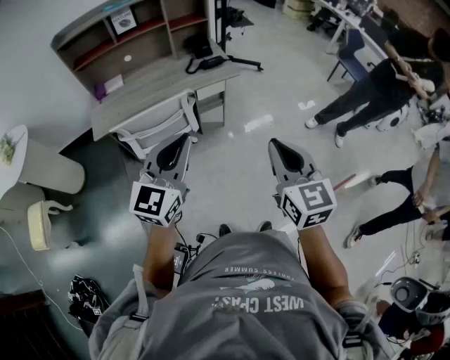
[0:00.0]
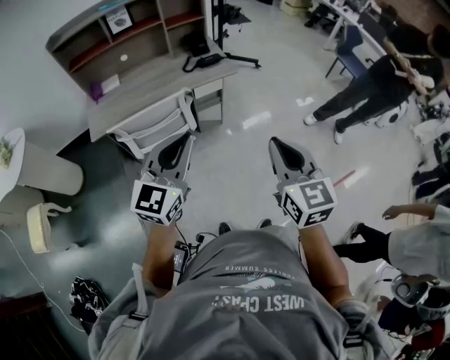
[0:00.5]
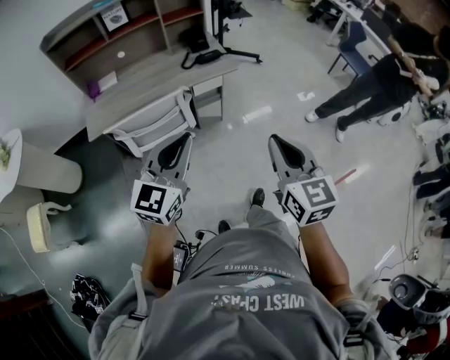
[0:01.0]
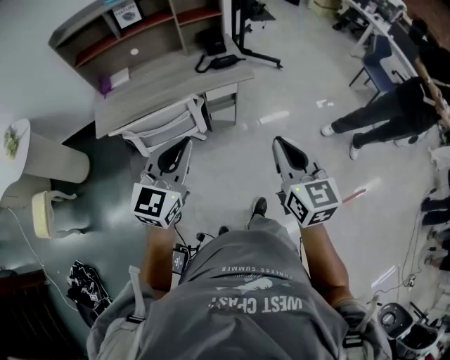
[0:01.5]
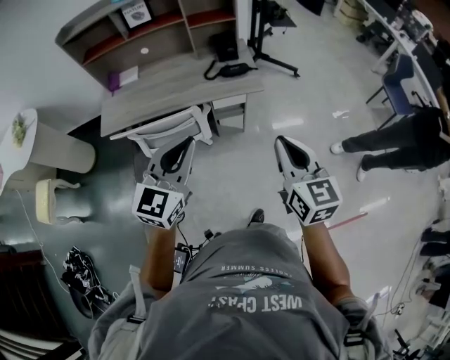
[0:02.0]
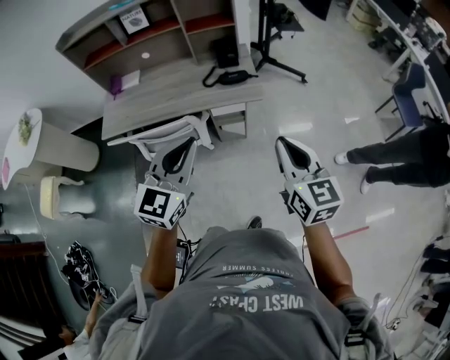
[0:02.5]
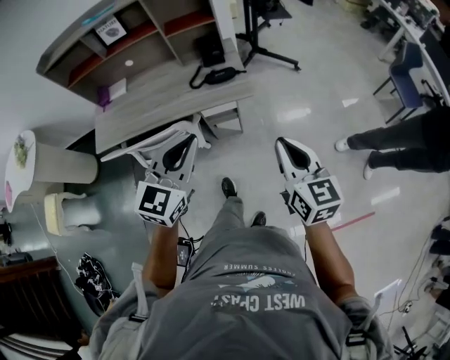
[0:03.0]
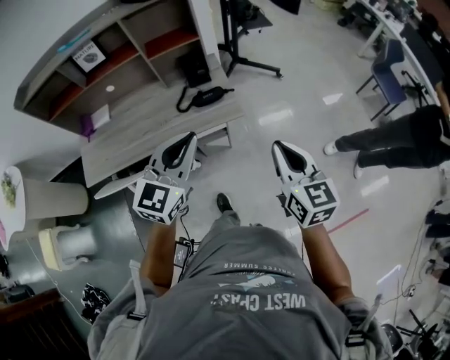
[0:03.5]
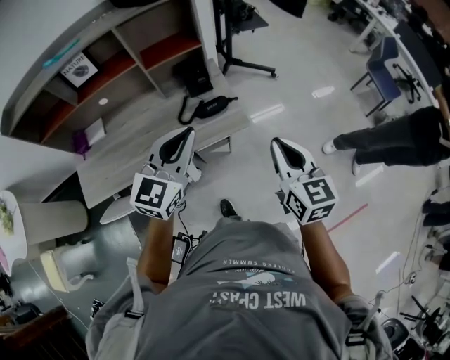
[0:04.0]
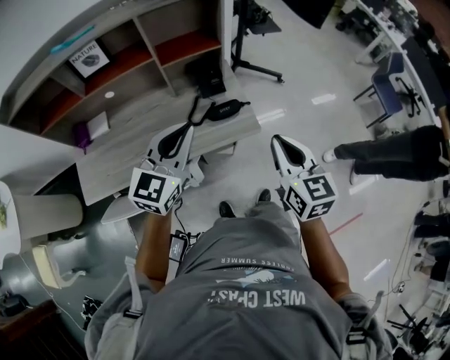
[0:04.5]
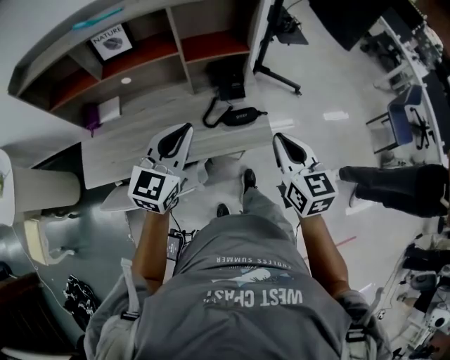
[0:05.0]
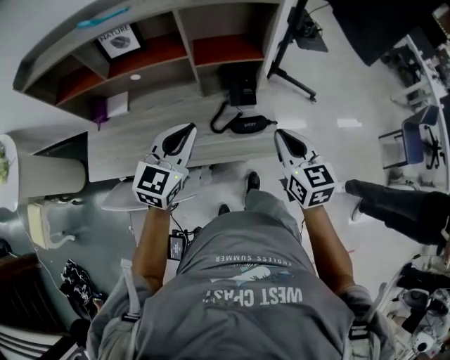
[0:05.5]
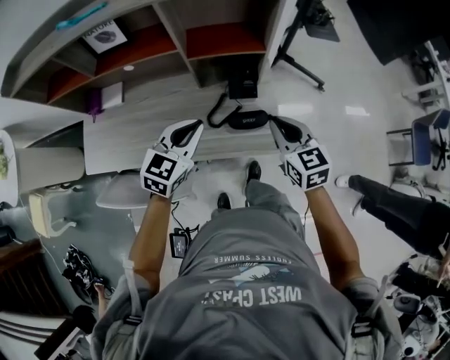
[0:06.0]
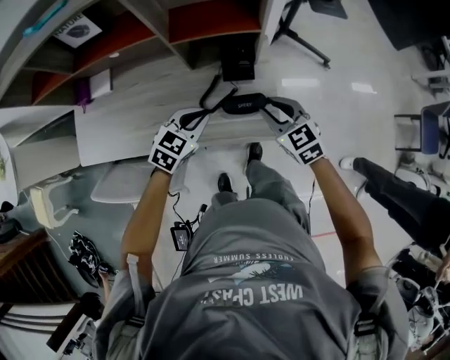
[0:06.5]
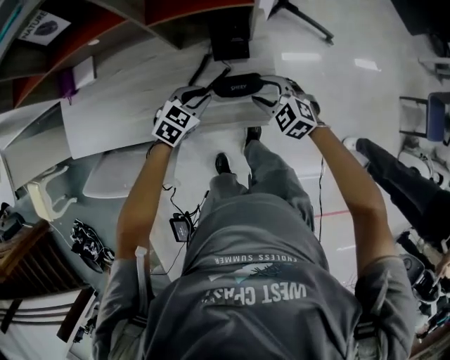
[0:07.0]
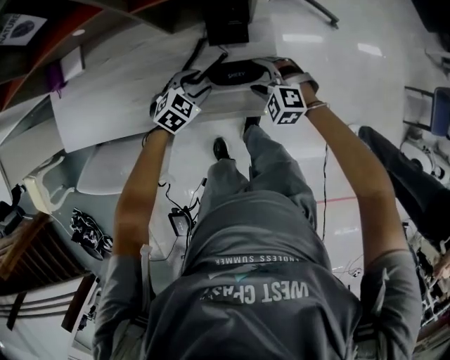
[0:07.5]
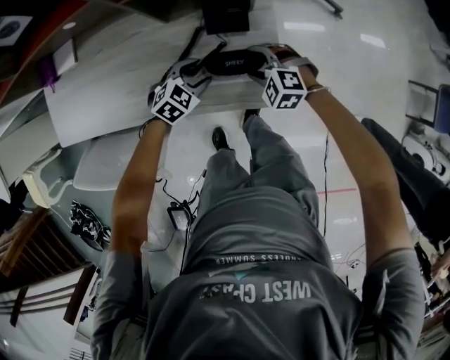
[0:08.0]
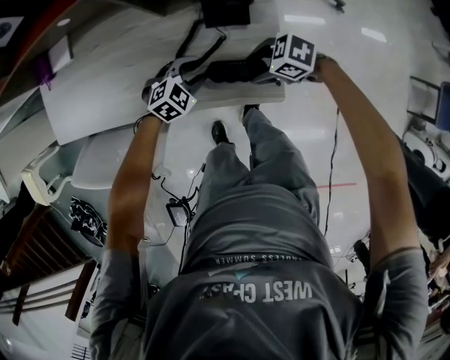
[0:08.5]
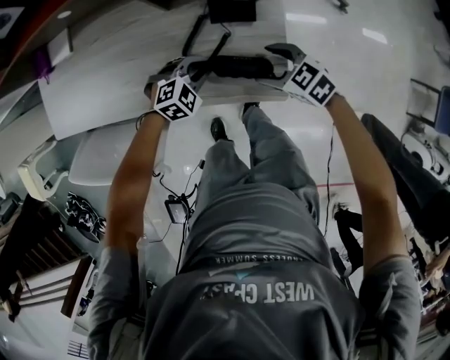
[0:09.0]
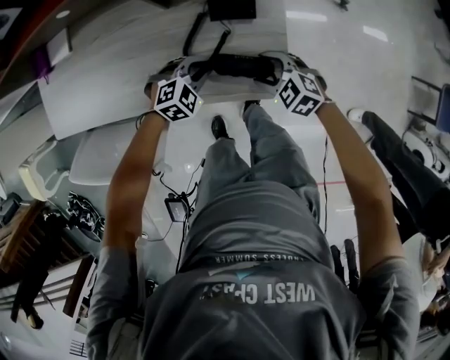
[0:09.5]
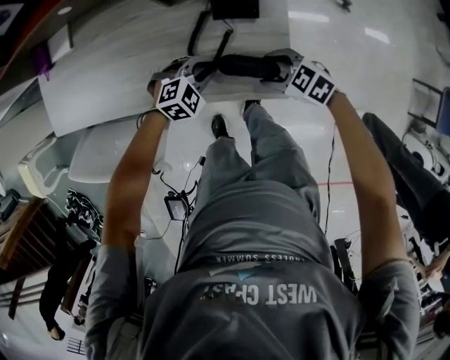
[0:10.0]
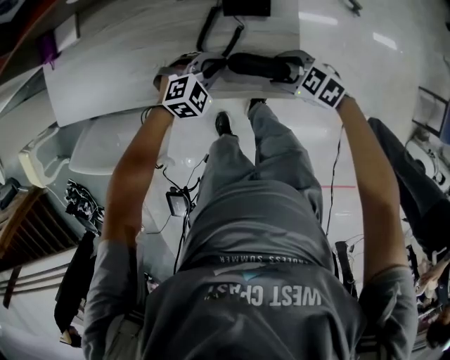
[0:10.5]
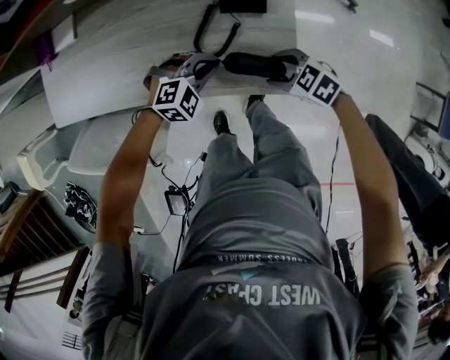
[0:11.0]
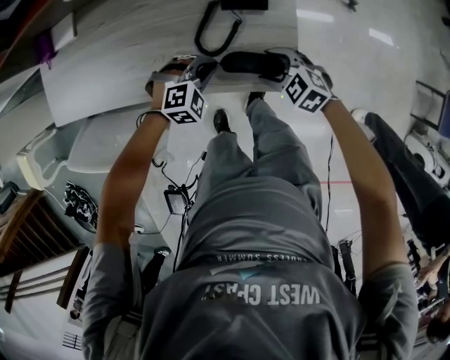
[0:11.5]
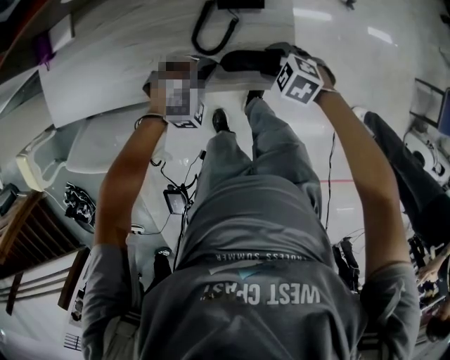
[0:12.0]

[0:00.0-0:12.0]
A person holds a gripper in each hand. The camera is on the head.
0:00.0 to 0:02.0: The grippers both shift forward by about 20 cm.
0:02.0 to 0:04.0: Both grippers travel together forward, about 30 cm.
0:04.0 to 0:06.0: The right gripper is displaced forward and downward by roughly 25 cm, and turns by about 30 degrees. Meanwhile the left gripper heads forward, downward and to the left, covering roughly 20 cm, and turns by about 20 degrees.
0:06.0 to 0:08.0: The two grippers go roughly 30 cm downward. The right gripper rolls counterclockwise, seen from behind, by about 50 degrees, and opens; the left gripper rotates some 30 degrees, and opens its fingers.
0:08.0 to 0:10.0: The left gripper closes. The right gripper ends up roughly 5 cm from where it was, and turns by roughly 30 degrees.
0:10.0 to 0:12.0: The left gripper changes its angle by some 20 degrees.

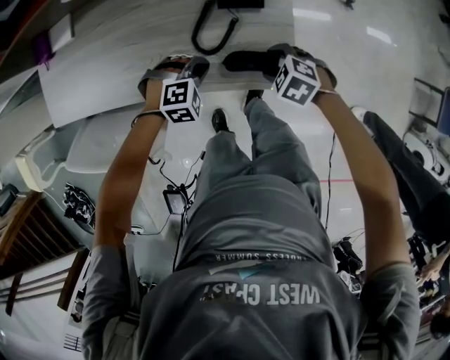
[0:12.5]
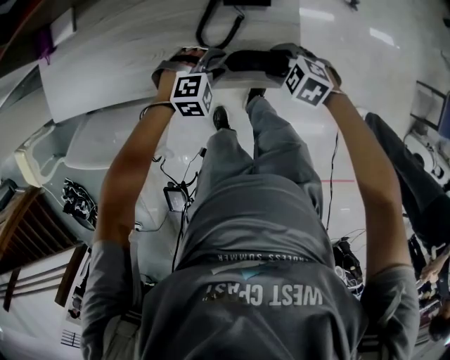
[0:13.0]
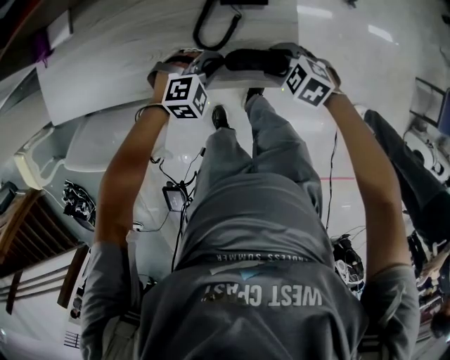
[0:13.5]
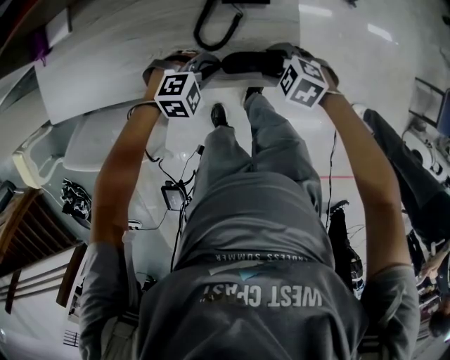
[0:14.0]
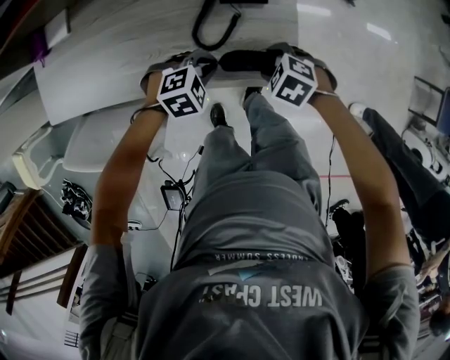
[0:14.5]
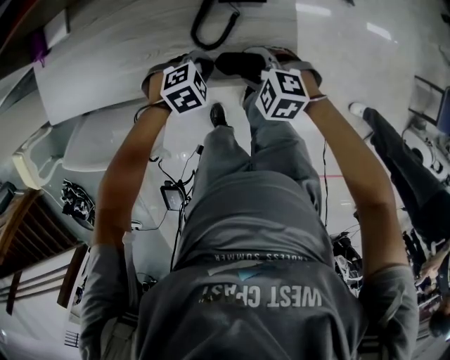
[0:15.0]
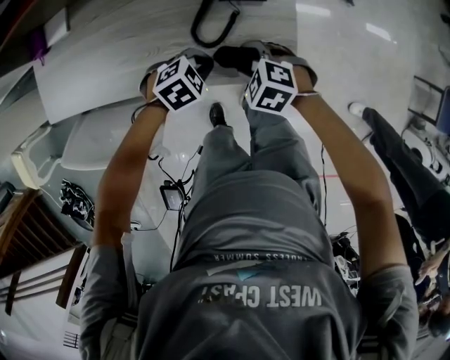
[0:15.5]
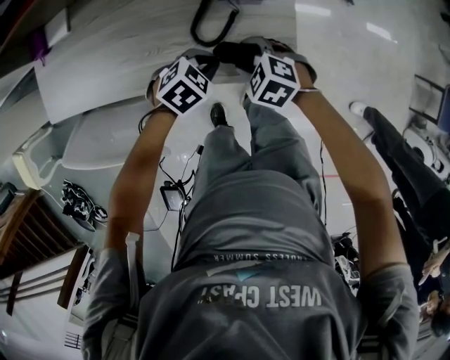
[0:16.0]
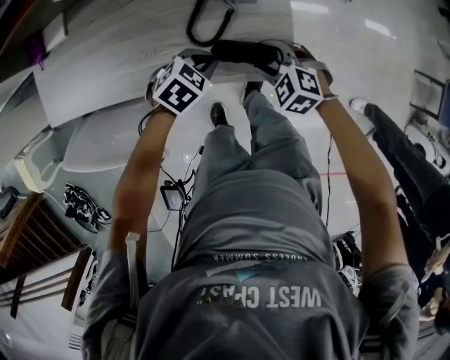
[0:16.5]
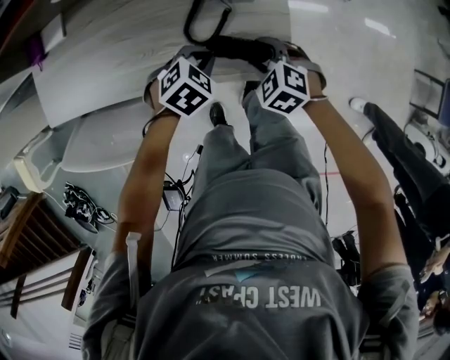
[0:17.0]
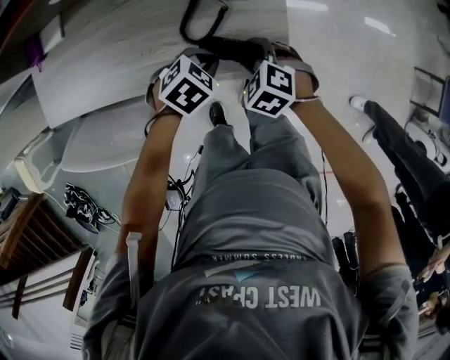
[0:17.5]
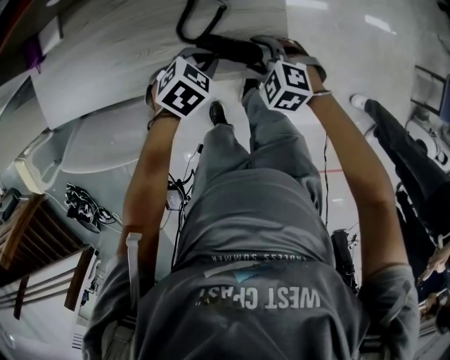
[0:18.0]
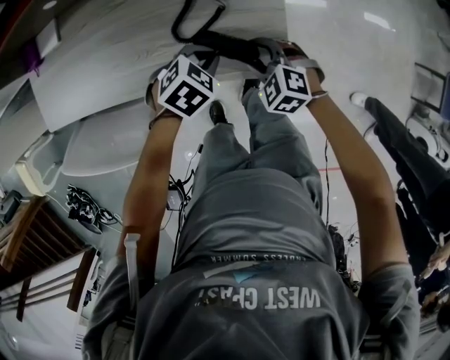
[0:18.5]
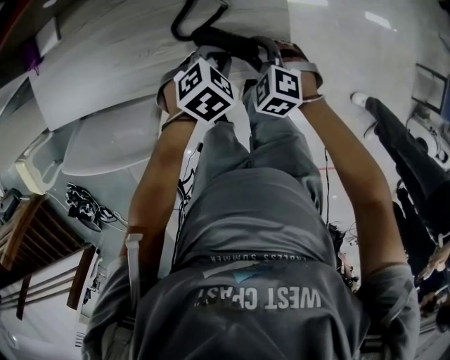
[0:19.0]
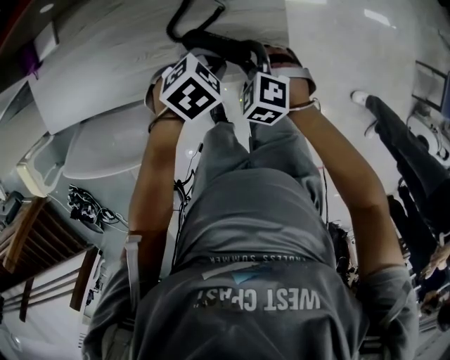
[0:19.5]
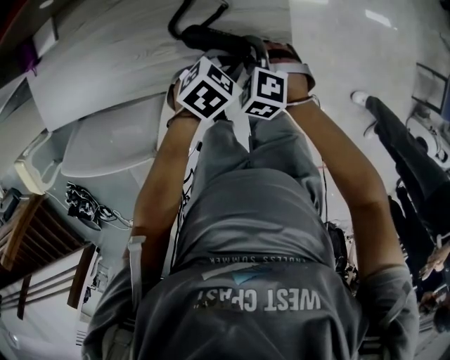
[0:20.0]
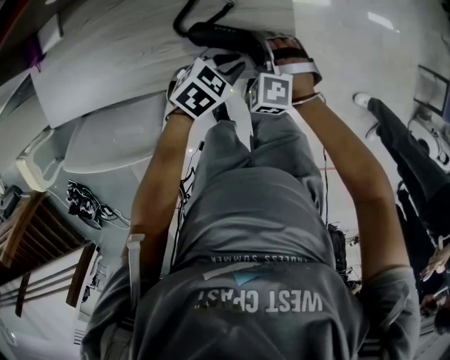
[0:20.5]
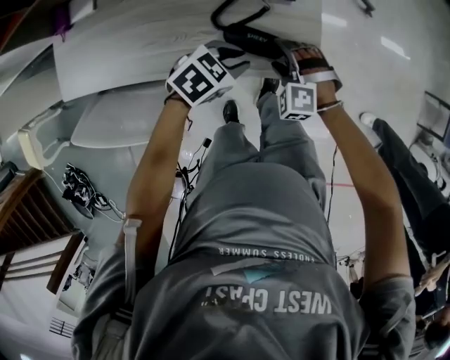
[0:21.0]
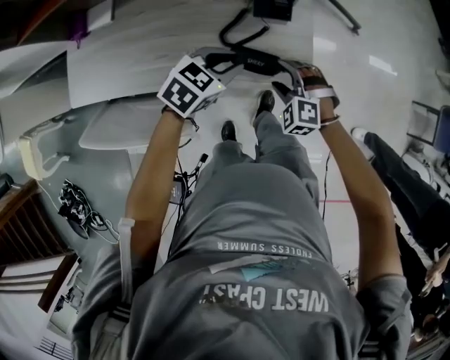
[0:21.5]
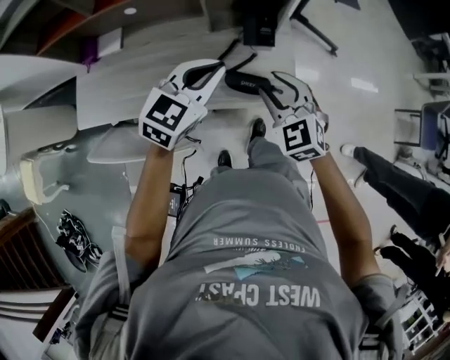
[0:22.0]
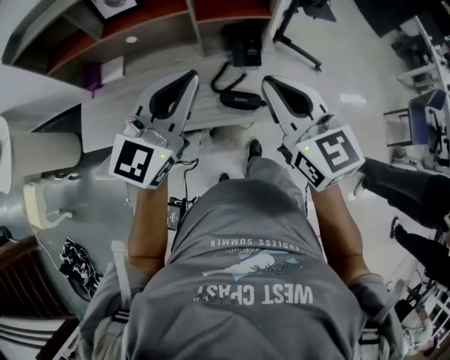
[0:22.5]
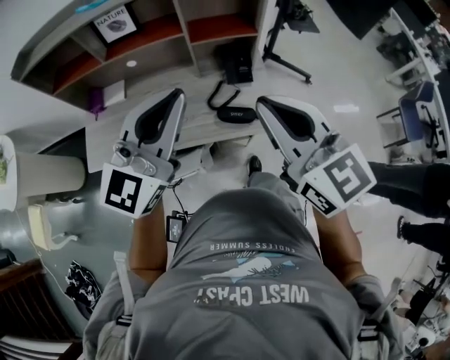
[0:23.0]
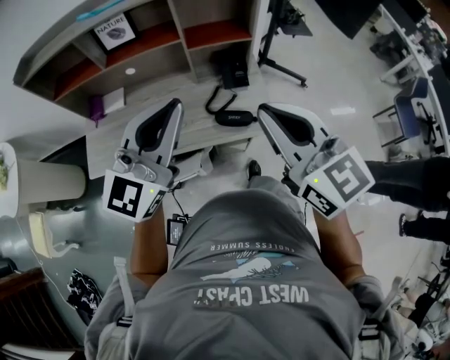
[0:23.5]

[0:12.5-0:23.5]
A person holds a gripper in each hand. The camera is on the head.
0:12.5 to 0:14.5: The left gripper opens, then closes once more.
0:14.5 to 0:16.0: The left gripper swivels roughly 20 degrees. Meanwhile the right gripper shifts by about 5 cm.
0:16.0 to 0:18.0: The grippers move only a little.
0:18.0 to 0:20.0: The left gripper goes approximately 5 cm to the right.
0:20.0 to 0:21.5: The right gripper heads upward, covering approximately 5 cm; the left gripper goes some 15 cm upward and to the left.
0:21.5 to 0:23.5: Both grippers move upward, roughly 40 cm. The right gripper tips its fingers upward by about 50 degrees, and closes up. Meanwhile the left gripper tilts its fingers roughly 50 degrees upward.

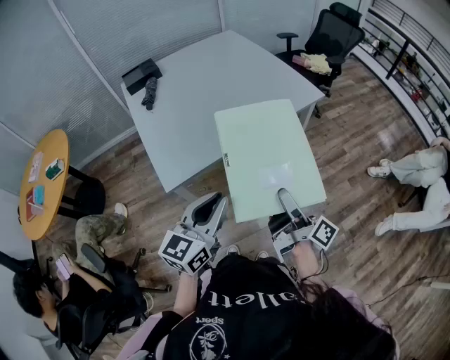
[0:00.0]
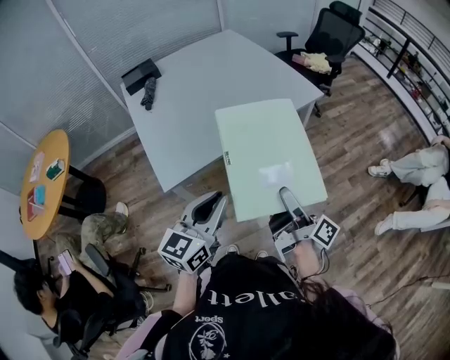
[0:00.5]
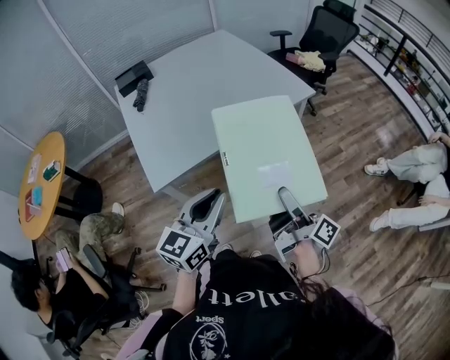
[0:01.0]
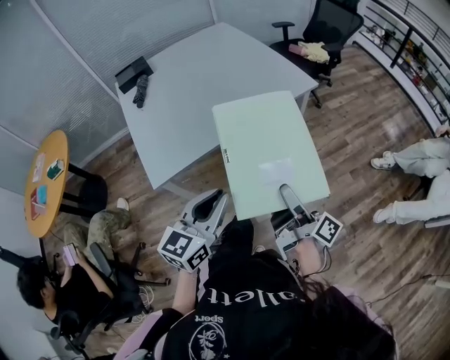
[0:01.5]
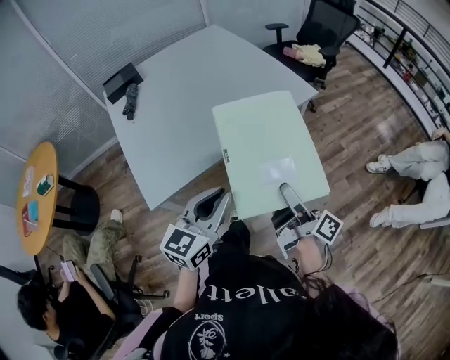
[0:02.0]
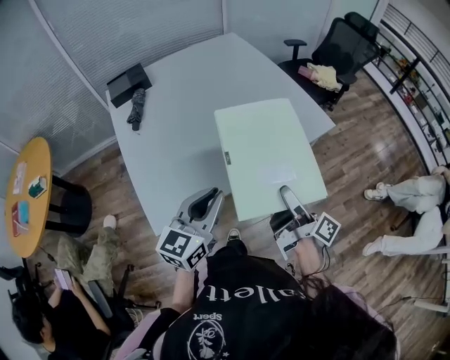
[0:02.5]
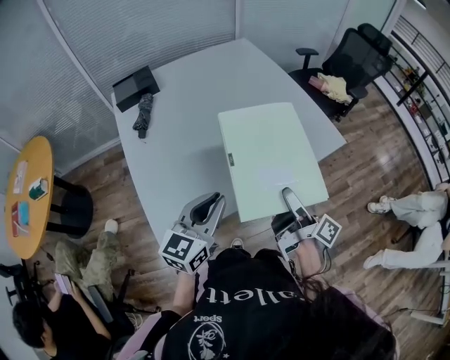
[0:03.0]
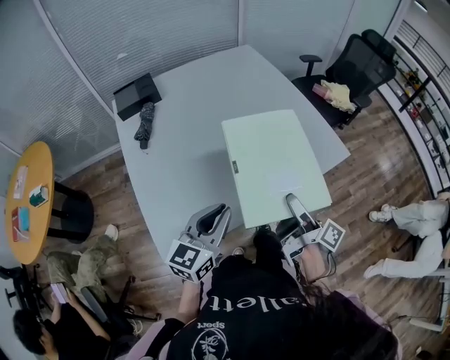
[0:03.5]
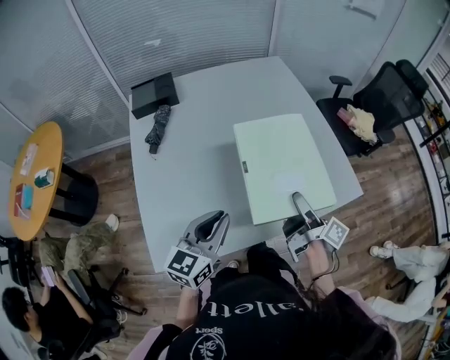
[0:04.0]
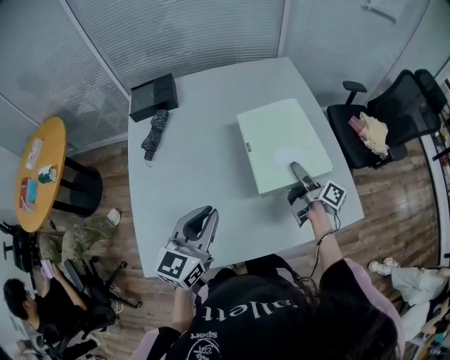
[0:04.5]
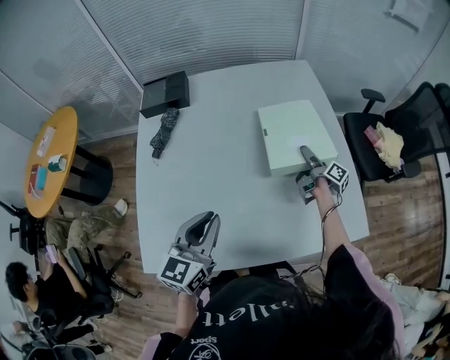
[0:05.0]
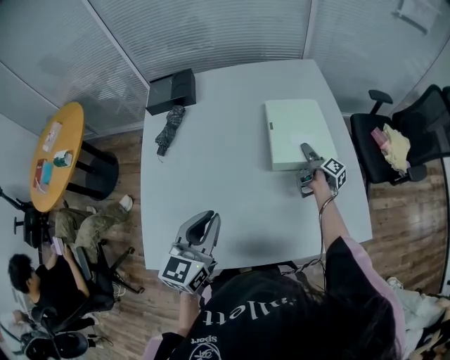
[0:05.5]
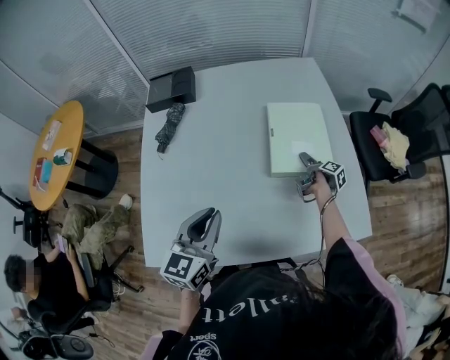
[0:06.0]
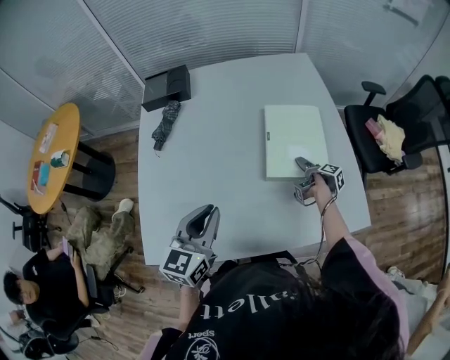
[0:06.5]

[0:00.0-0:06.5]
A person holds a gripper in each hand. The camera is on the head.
0:00.0 to 0:02.0: The left gripper moves about 10 cm.
0:02.0 to 0:04.5: The left gripper ends up some 35 cm from where it was, and turns by roughly 30 degrees.
